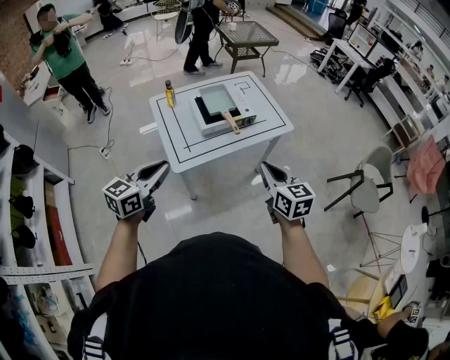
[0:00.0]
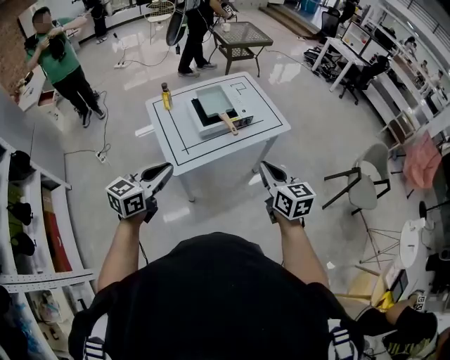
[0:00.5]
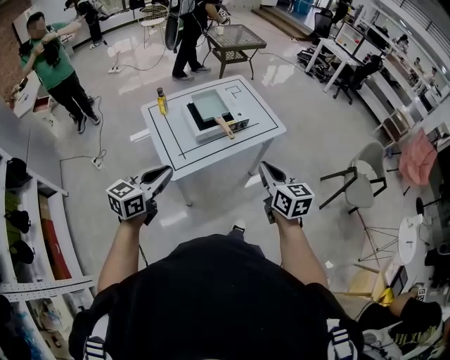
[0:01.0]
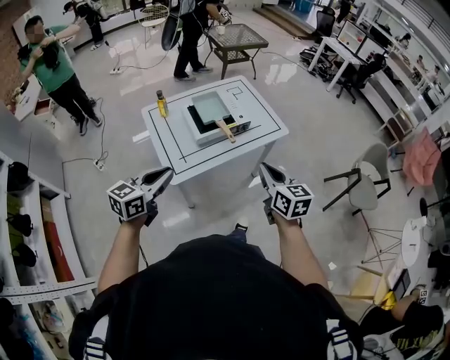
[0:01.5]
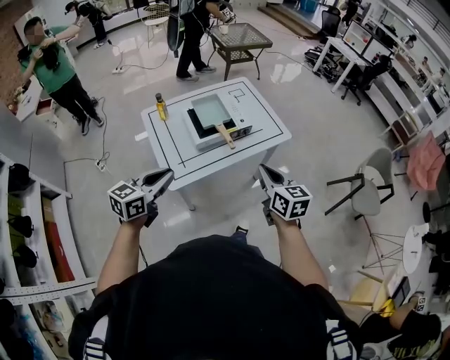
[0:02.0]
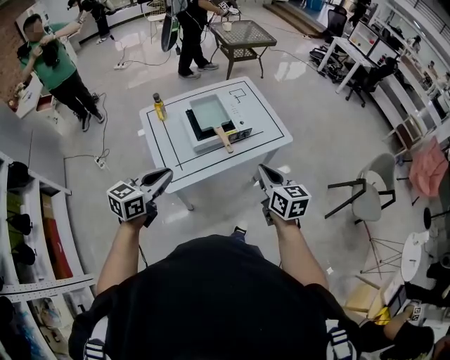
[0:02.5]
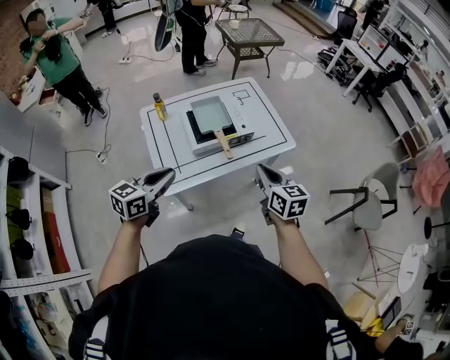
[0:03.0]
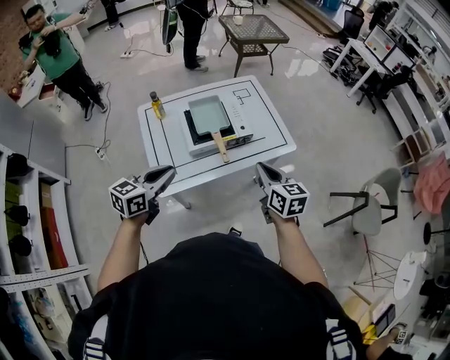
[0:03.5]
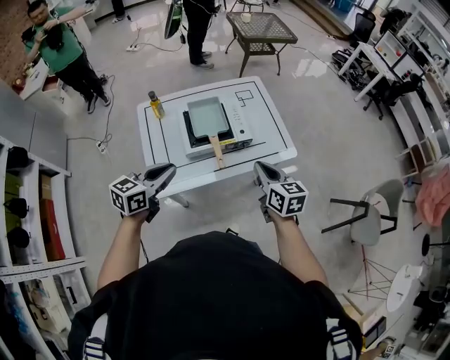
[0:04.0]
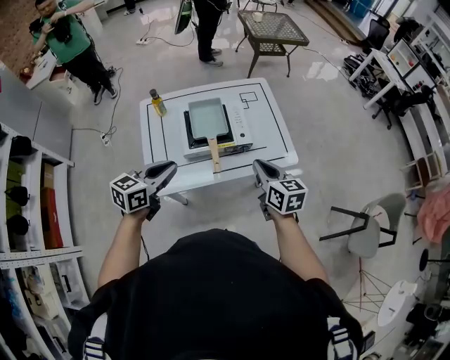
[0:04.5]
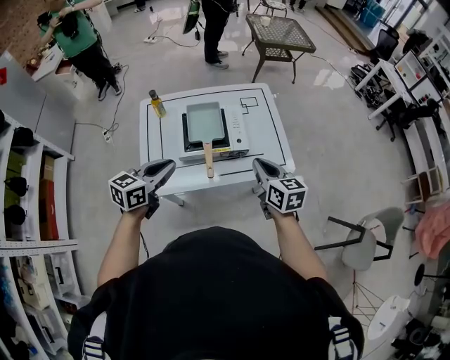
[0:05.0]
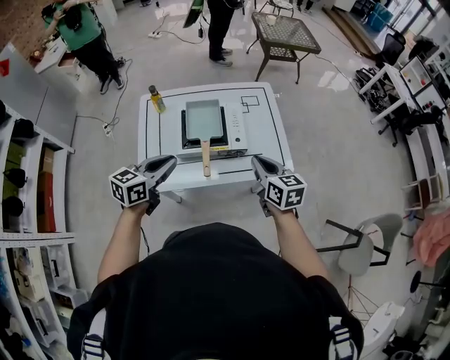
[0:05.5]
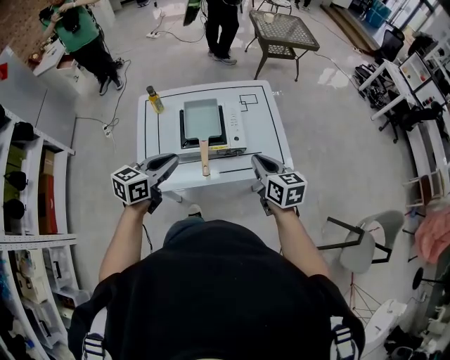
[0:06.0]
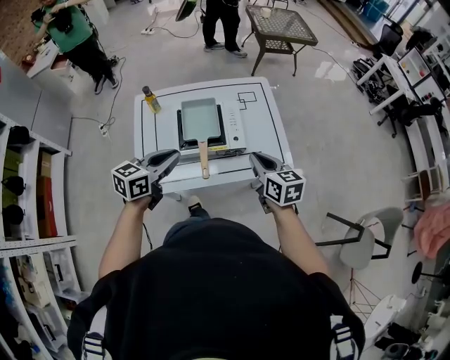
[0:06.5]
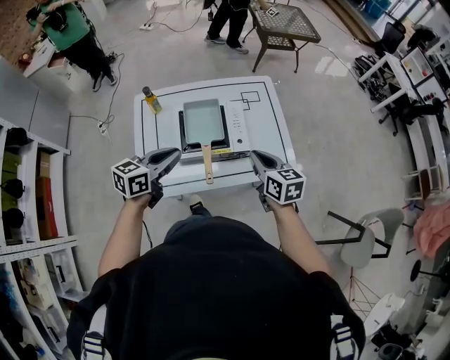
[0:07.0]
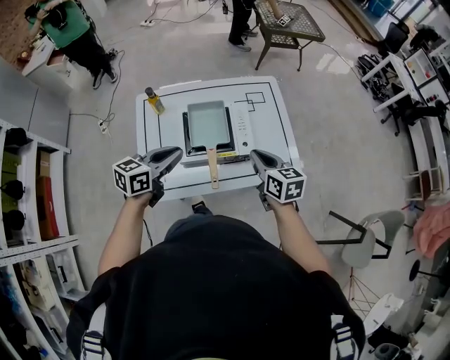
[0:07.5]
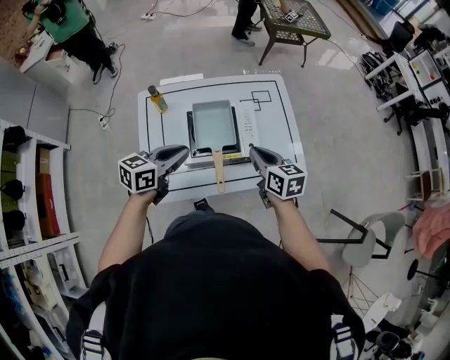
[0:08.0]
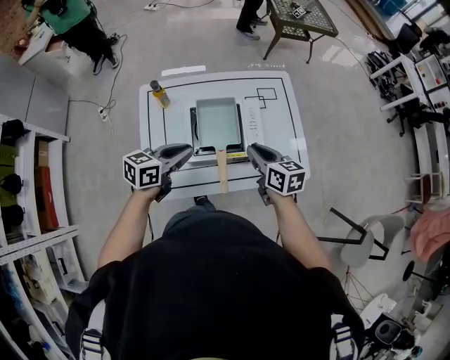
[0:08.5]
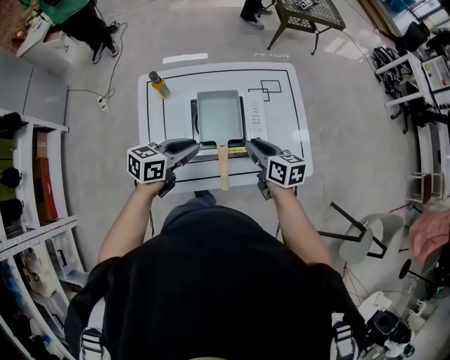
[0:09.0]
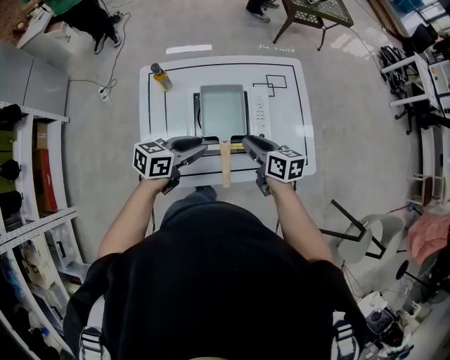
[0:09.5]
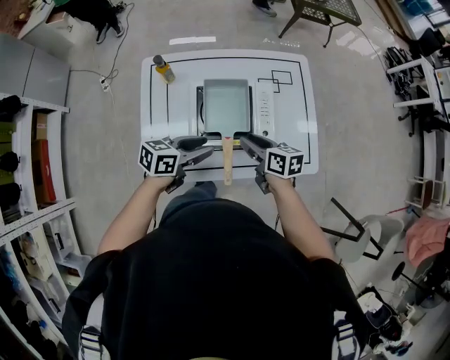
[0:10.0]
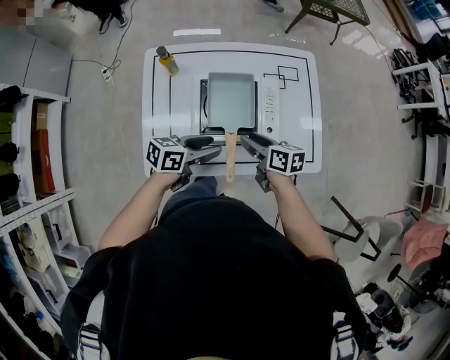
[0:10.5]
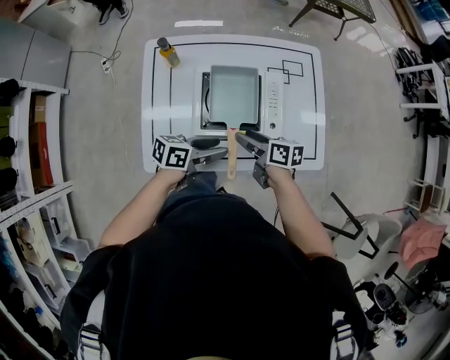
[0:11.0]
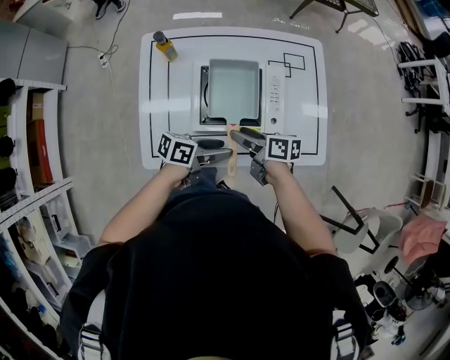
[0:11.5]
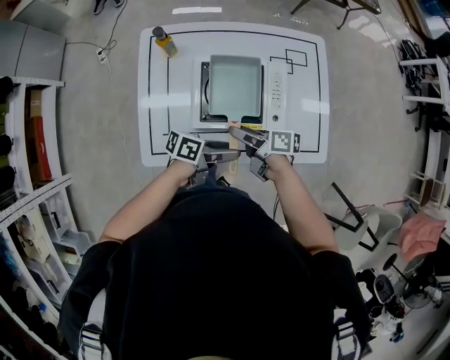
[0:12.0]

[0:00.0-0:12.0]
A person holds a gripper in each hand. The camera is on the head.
0:00.0 to 0:02.0: The two grippers go roughly 10 cm forward.
0:02.0 to 0:04.0: The left gripper shifts some 15 cm forward and to the right. Meanwhile the right gripper travels forward by about 15 cm.
0:04.0 to 0:06.0: The left gripper heads to the right and forward, covering roughly 10 cm; the right gripper travels forward by about 10 cm.
0:06.0 to 0:08.0: The left gripper travels forward by some 10 cm. The right gripper moves forward and to the left, some 10 cm.
0:08.0 to 0:10.0: The left gripper goes about 10 cm downward, and opens its fingers; the right gripper travels downward and to the left by some 10 cm, changes its angle by approximately 20 degrees, and opens.
0:10.0 to 0:12.0: The right gripper heads downward, covering about 5 cm, rotates approximately 30 degrees, and opens; the left gripper changes place by about 10 cm, and rotates roughly 30 degrees.

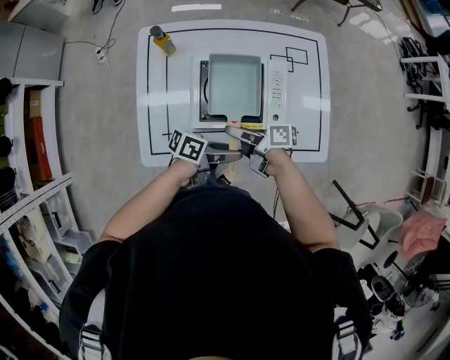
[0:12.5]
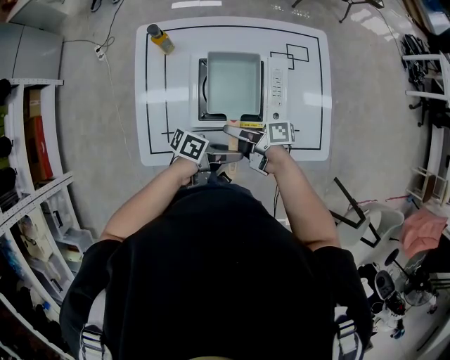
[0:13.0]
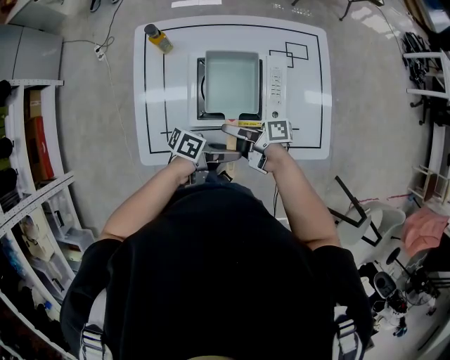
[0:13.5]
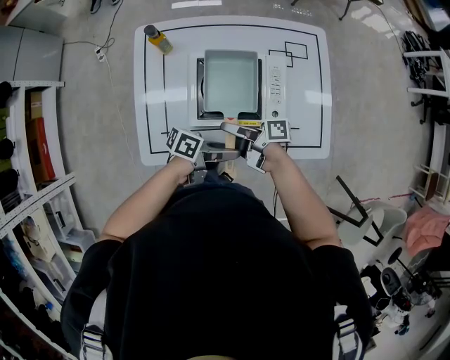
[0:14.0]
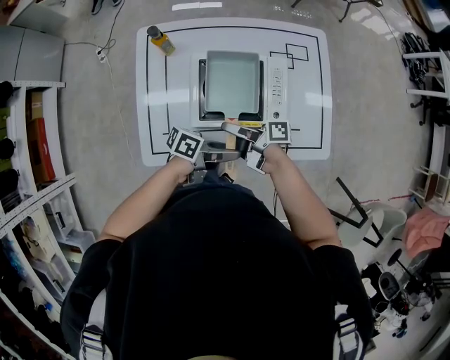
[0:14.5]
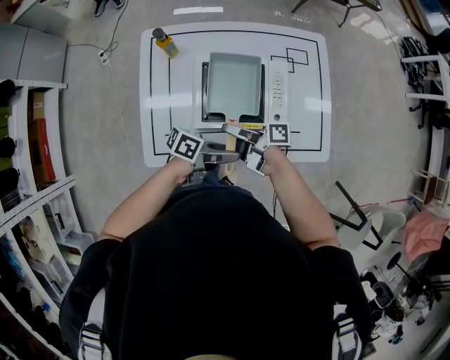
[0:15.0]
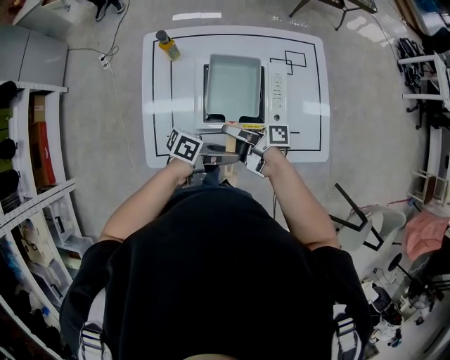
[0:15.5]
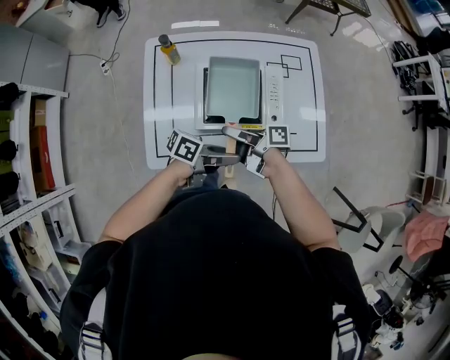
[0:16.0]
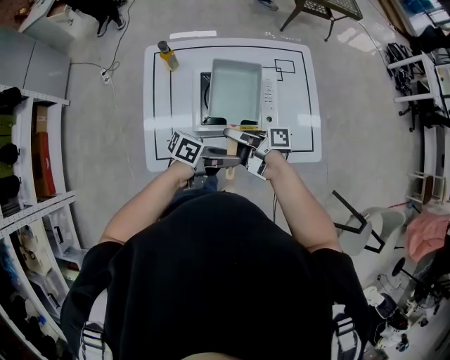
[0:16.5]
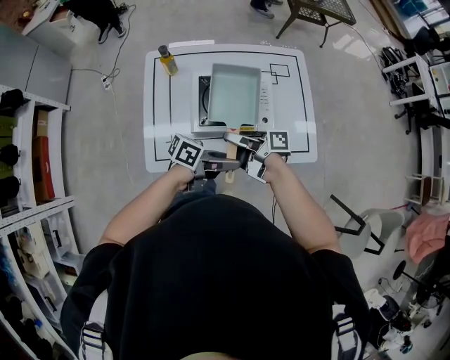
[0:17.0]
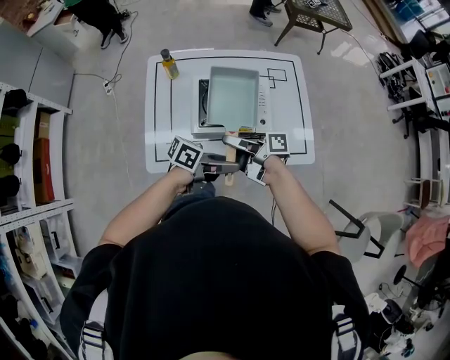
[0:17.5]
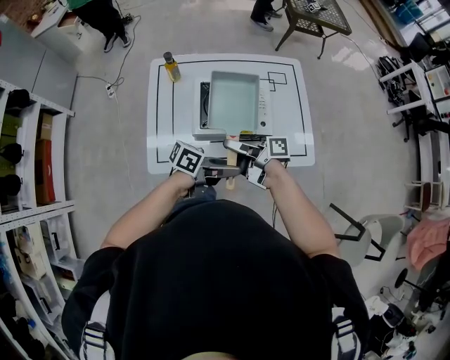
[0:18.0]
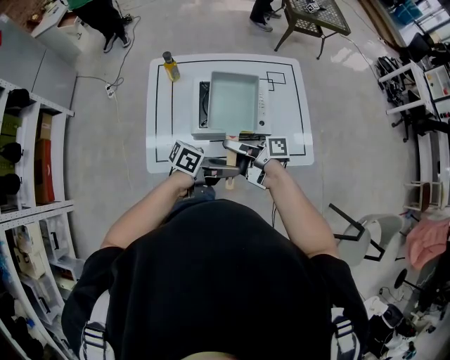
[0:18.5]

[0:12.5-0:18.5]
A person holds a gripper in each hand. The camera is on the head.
0:12.5 to 0:14.5: The right gripper closes up.
0:14.5 to 0:16.5: Both grippers move upward, some 5 cm.
0:16.5 to 0:18.5: The right gripper shifts by some 5 cm; the left gripper changes place by some 5 cm.

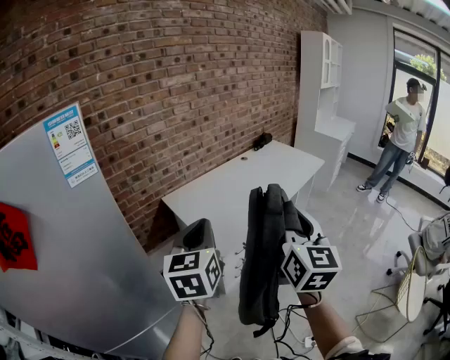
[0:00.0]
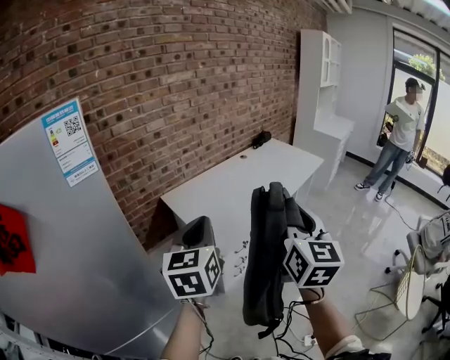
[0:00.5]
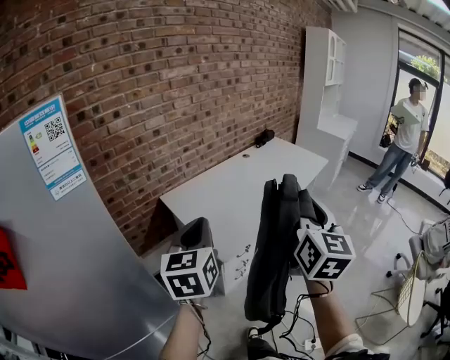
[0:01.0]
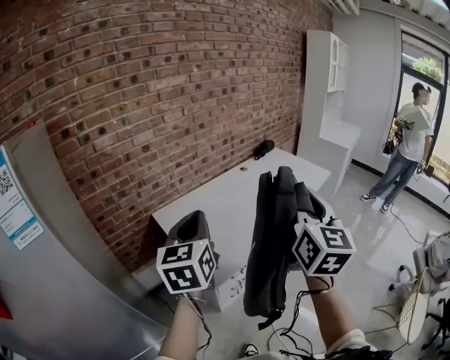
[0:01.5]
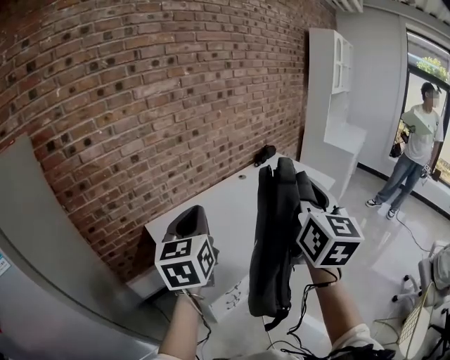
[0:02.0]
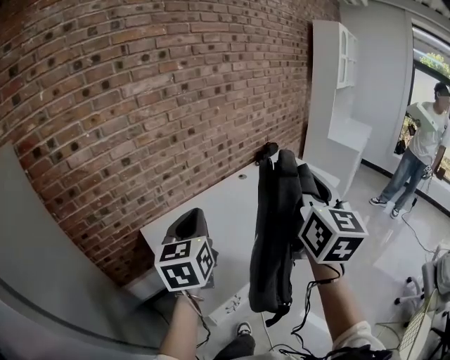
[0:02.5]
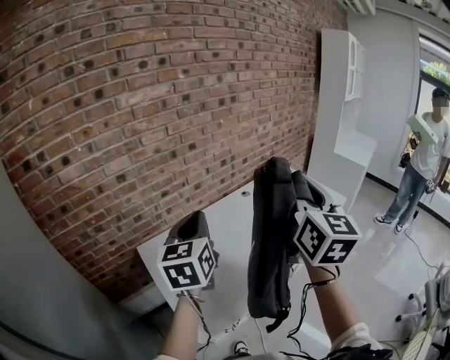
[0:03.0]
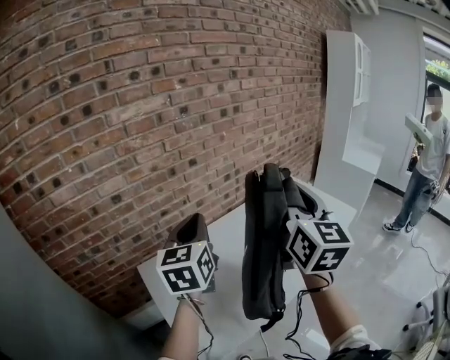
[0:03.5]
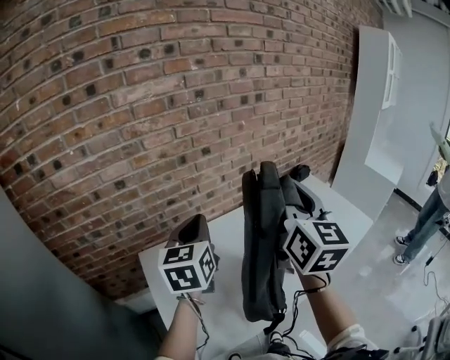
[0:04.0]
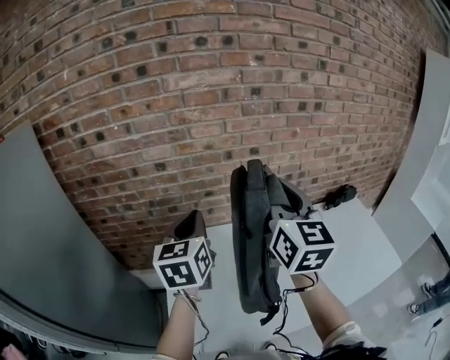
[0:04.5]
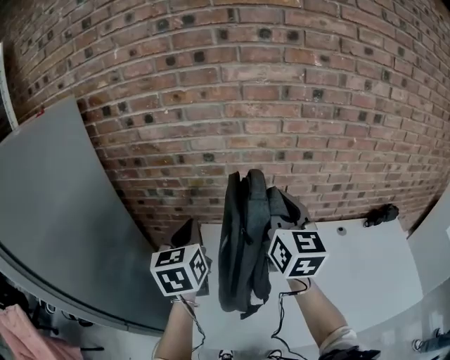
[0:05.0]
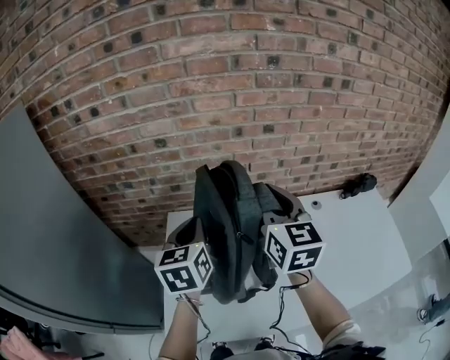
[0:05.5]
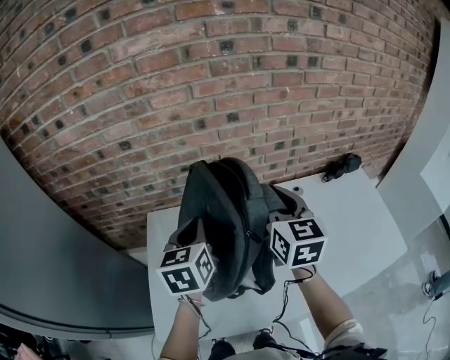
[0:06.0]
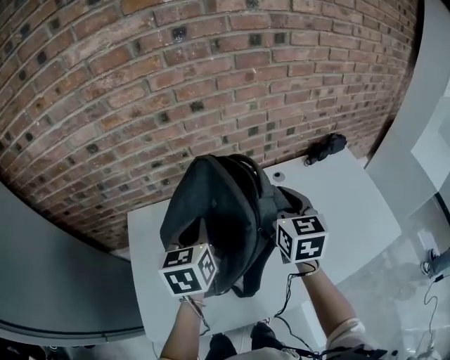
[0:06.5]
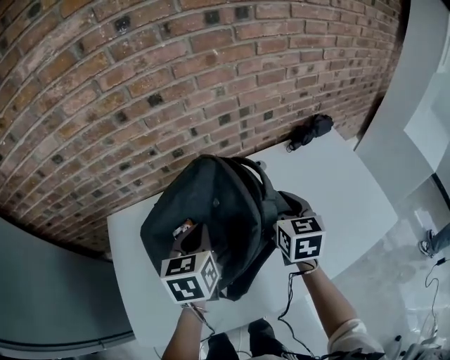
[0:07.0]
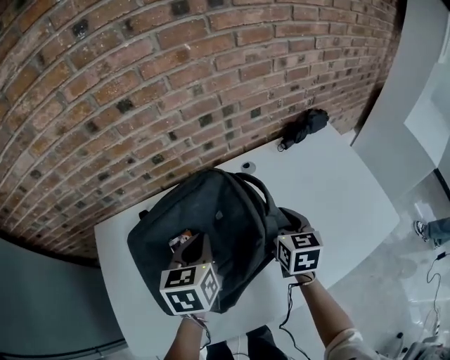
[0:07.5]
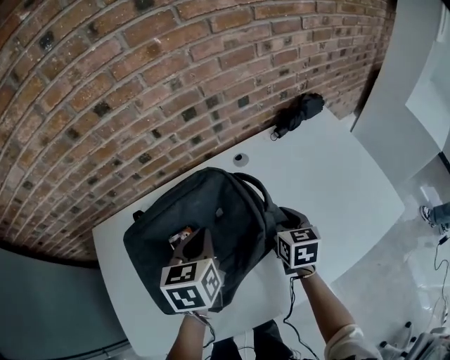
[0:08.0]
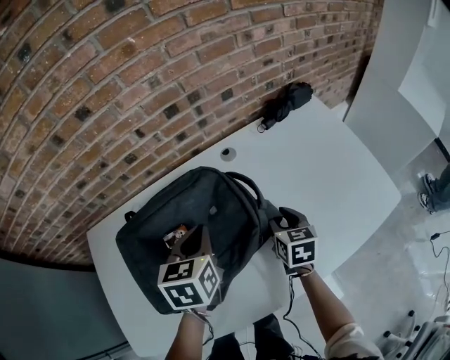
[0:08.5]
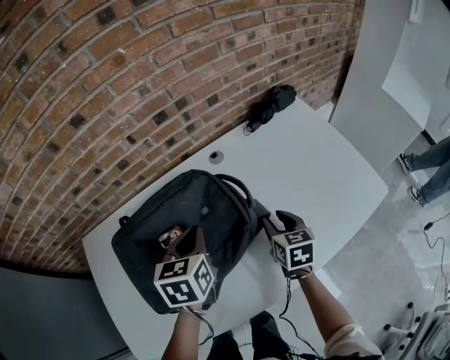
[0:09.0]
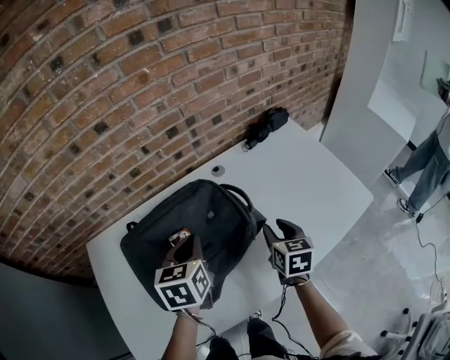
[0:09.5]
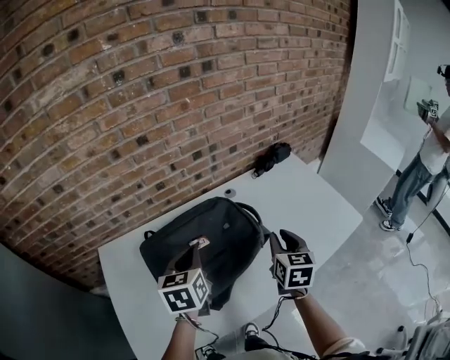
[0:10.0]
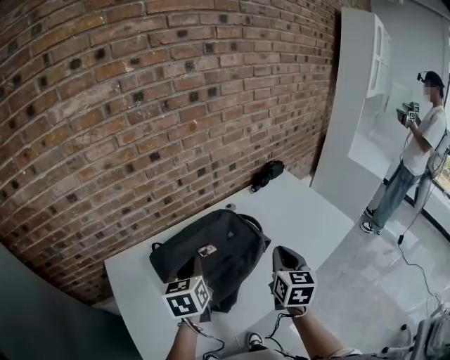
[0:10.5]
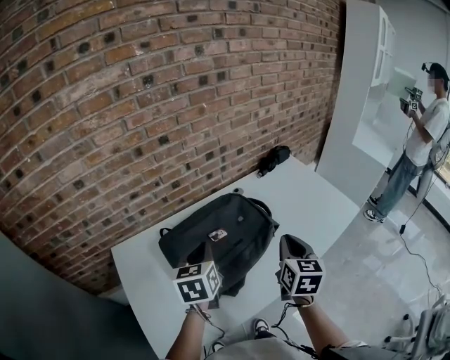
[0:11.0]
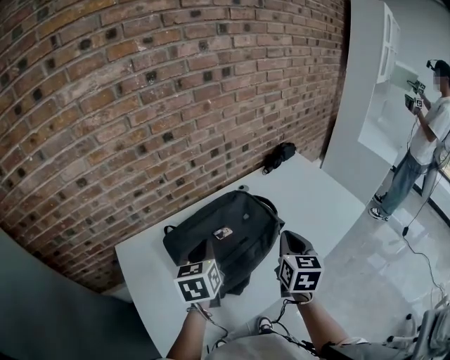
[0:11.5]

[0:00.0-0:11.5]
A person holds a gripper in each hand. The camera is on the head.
0:00.0 to 0:02.0: Both grippers move forward, approximately 25 cm.
0:02.0 to 0:04.0: Both grippers move forward, some 30 cm.
0:04.0 to 0:06.0: The left gripper heads downward, covering roughly 10 cm, and changes its angle by roughly 30 degrees, while the right gripper heads downward, covering roughly 15 cm, and changes its angle by some 30 degrees.
0:06.0 to 0:07.5: The left gripper travels to the right and downward by about 25 cm; the right gripper heads downward and to the right, covering roughly 35 cm, and swivels some 20 degrees.
0:07.5 to 0:09.5: The right gripper is displaced backward and to the right by roughly 10 cm, reaches roughly 10 cm downward, then returns, and opens.
0:09.5 to 0:11.5: The left gripper moves to the left, backward and upward, about 15 cm. Meanwhile the right gripper goes some 25 cm upward, backward and to the left, and closes its fingers.
